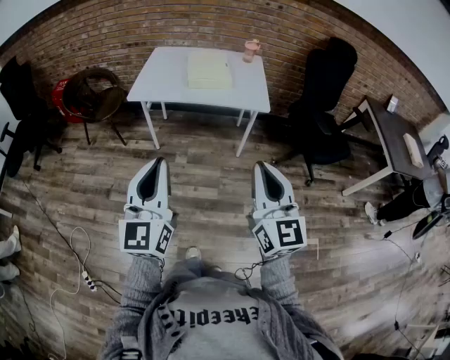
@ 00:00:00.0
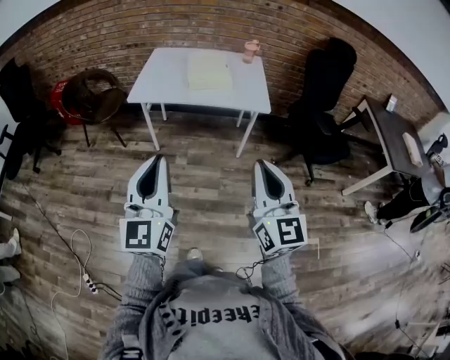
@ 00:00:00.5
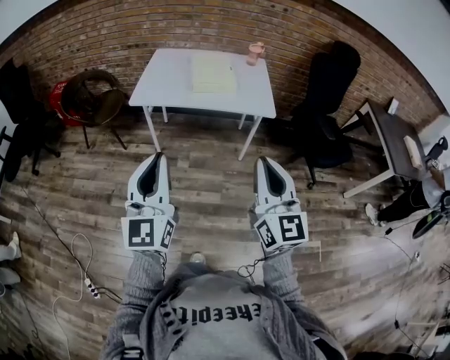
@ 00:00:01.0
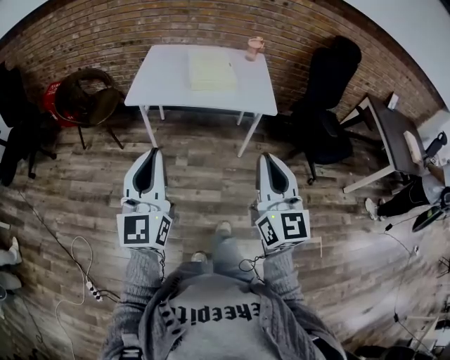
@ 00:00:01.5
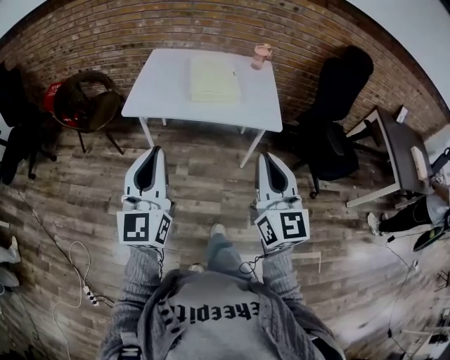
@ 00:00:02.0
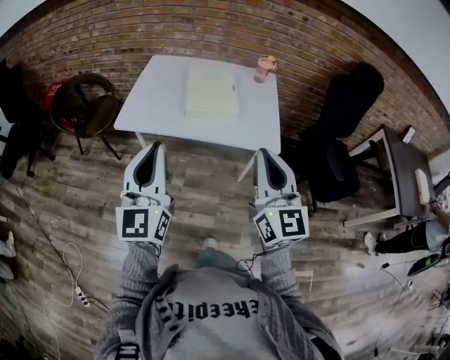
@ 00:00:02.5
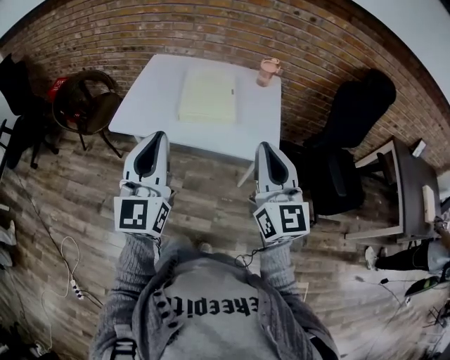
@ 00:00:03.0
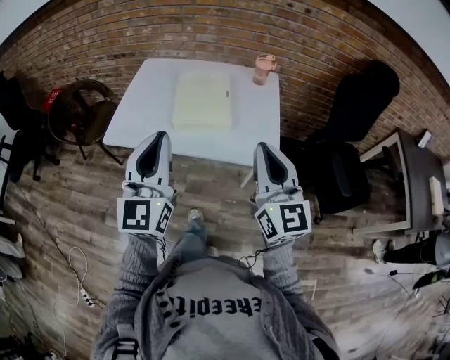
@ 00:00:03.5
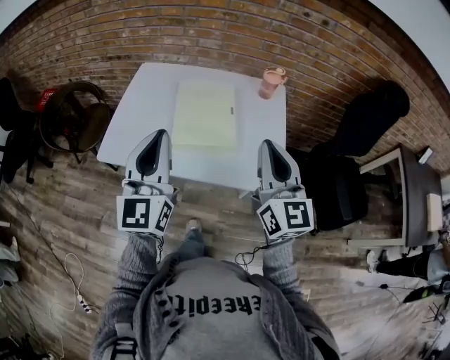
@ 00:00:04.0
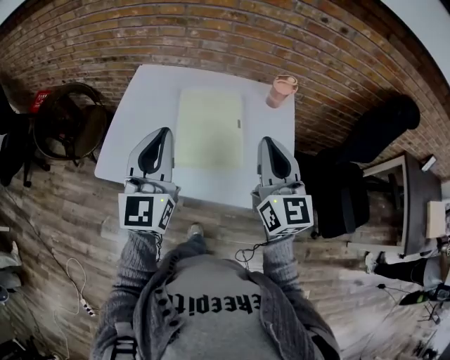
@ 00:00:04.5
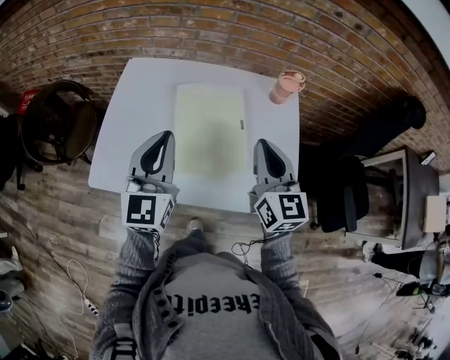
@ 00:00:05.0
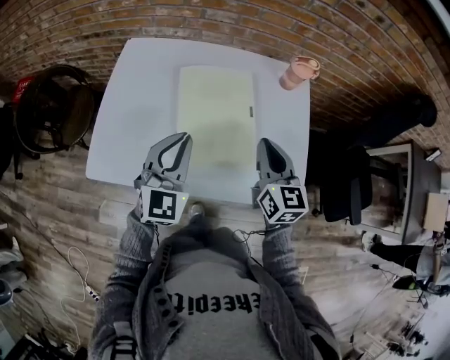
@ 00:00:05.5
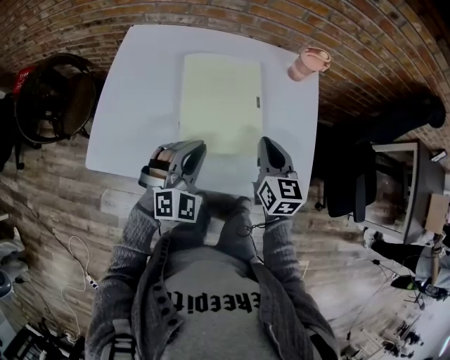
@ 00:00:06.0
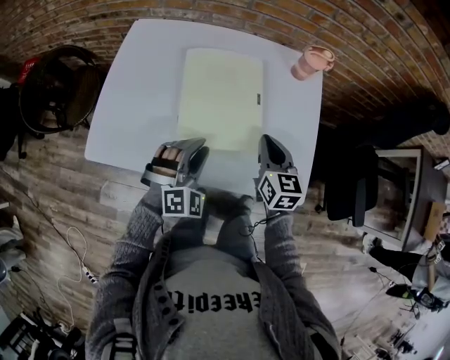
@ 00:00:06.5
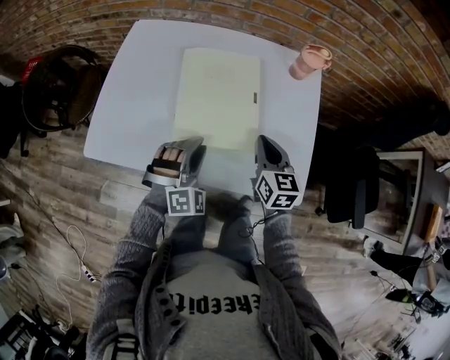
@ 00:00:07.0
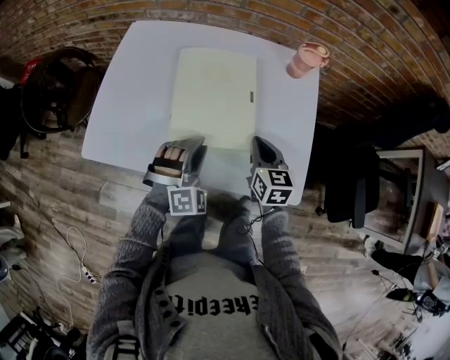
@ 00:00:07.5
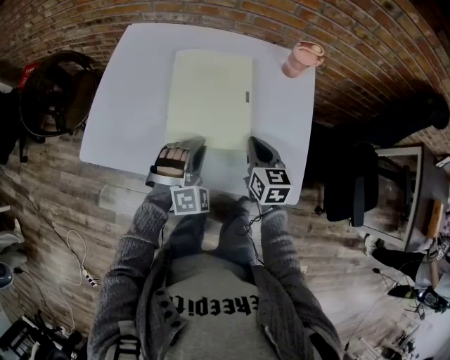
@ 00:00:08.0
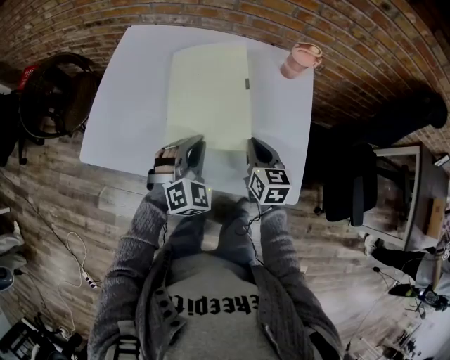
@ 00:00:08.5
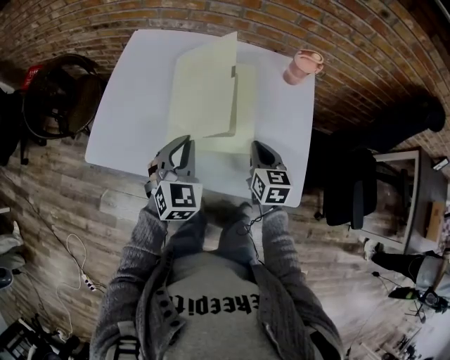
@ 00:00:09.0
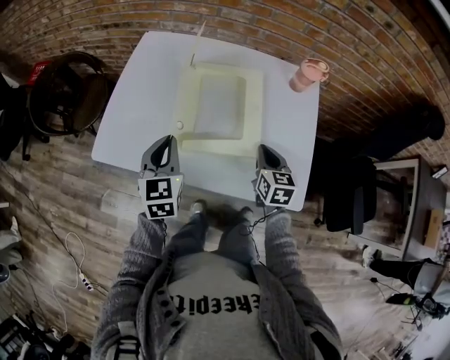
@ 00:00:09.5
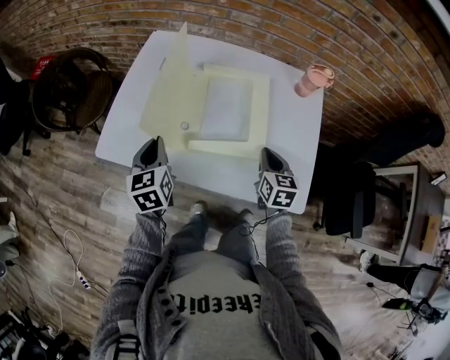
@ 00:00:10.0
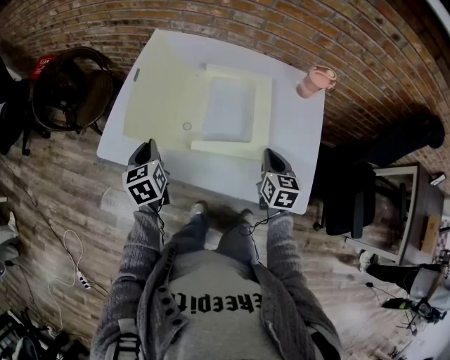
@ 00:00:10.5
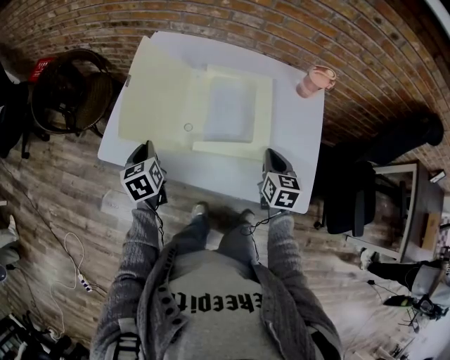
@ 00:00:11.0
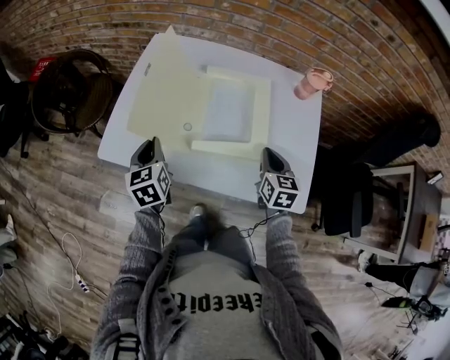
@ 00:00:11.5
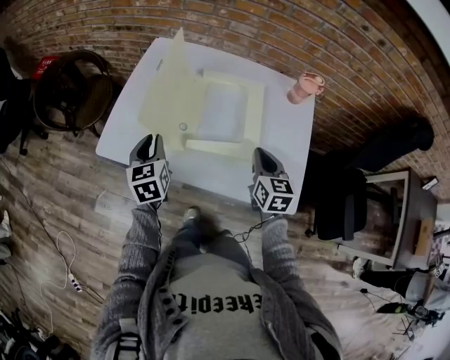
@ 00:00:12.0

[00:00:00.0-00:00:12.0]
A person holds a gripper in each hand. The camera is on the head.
00:00:00.0 to 00:00:02.0: Both grippers move forward, roughly 20 cm.
00:00:02.0 to 00:00:04.0: The two grippers go roughly 35 cm forward.
00:00:04.0 to 00:00:06.0: The two grippers go approximately 30 cm downward and forward. The left gripper tips its fingers downward by approximately 40 degrees. The right gripper turns by approximately 30 degrees.
00:00:06.0 to 00:00:08.0: Both grippers move downward, roughly 5 cm. The left gripper rotates approximately 20 degrees.
00:00:08.0 to 00:00:10.0: The left gripper heads to the left, covering some 20 cm, and rolls counterclockwise, seen from behind, by approximately 80 degrees.
00:00:10.0 to 00:00:12.0: The right gripper is displaced upward by approximately 5 cm.

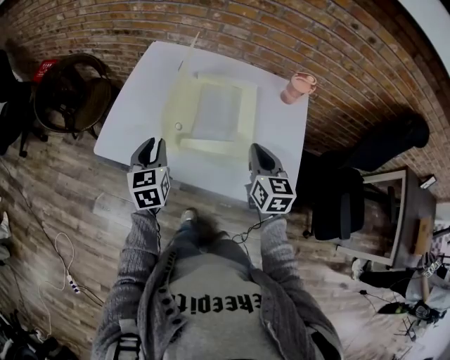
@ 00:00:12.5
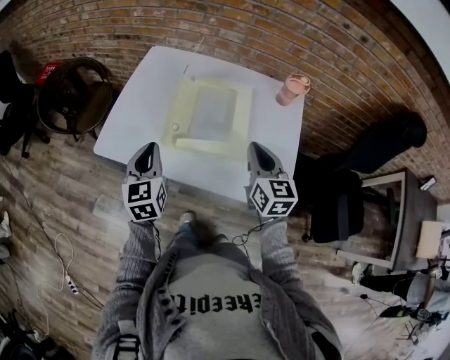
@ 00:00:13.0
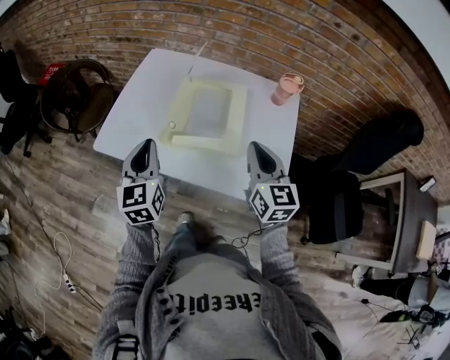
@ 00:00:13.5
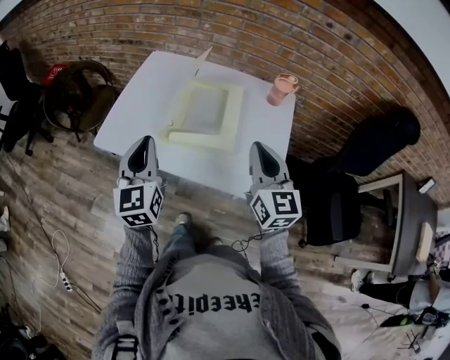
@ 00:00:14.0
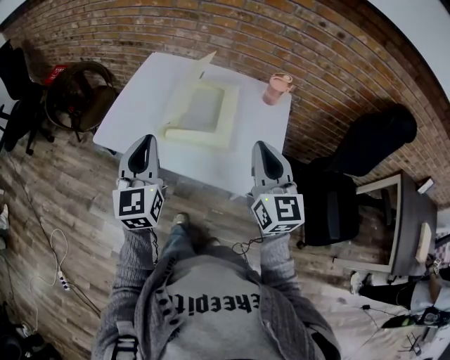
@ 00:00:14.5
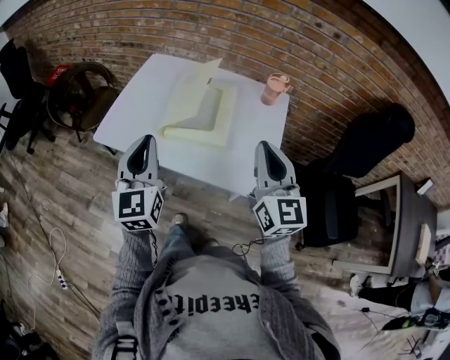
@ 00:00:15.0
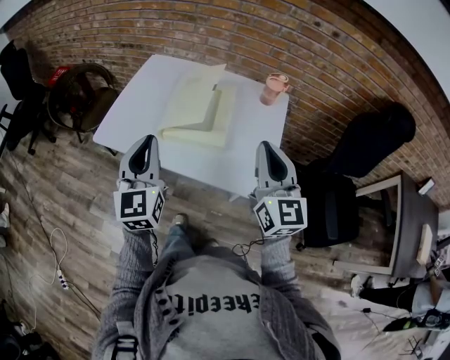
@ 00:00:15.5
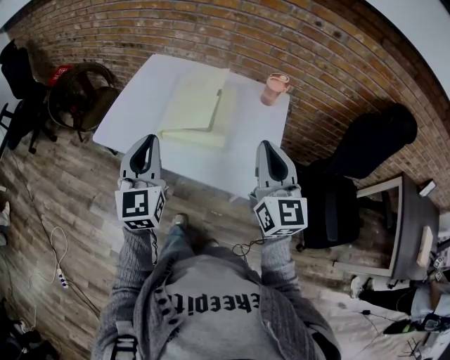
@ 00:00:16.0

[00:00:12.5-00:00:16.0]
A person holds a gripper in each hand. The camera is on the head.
00:00:12.5 to 00:00:14.5: Both grippers move upward and backward, roughly 20 cm. The right gripper turns by roughly 20 degrees. The left gripper swivels about 30 degrees.
00:00:14.5 to 00:00:16.0: The grippers move only a little.

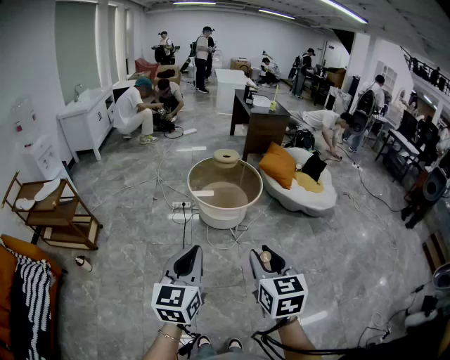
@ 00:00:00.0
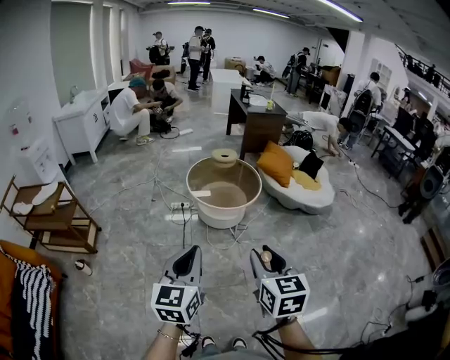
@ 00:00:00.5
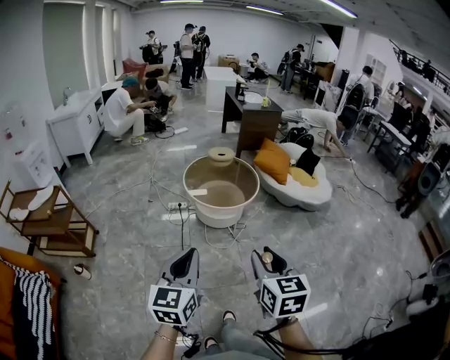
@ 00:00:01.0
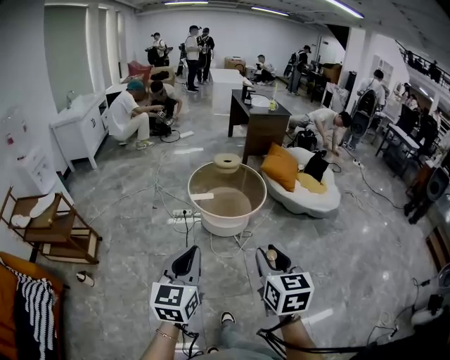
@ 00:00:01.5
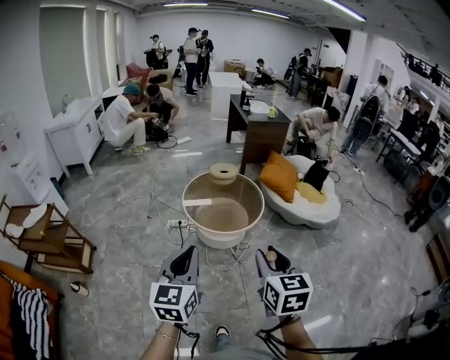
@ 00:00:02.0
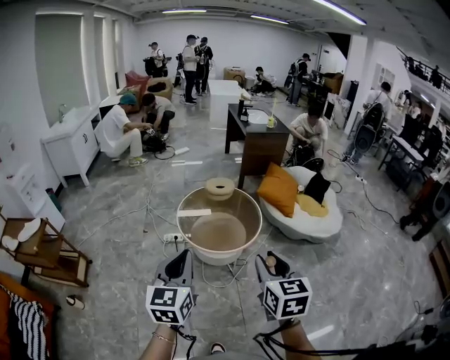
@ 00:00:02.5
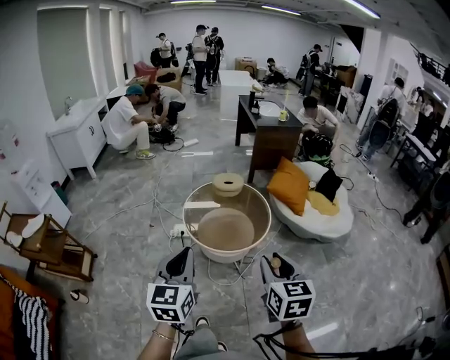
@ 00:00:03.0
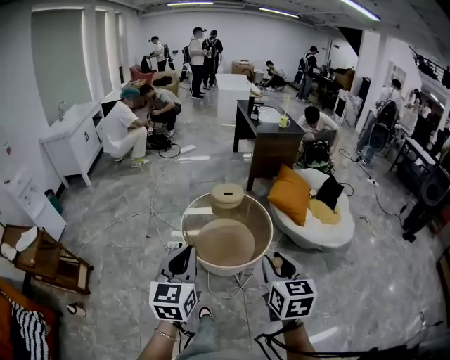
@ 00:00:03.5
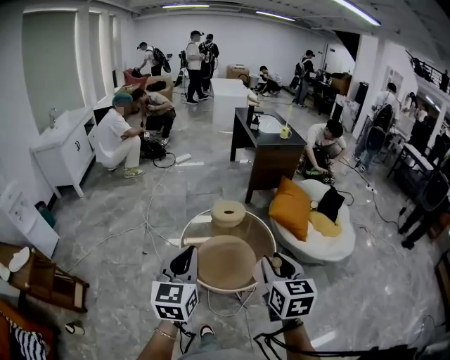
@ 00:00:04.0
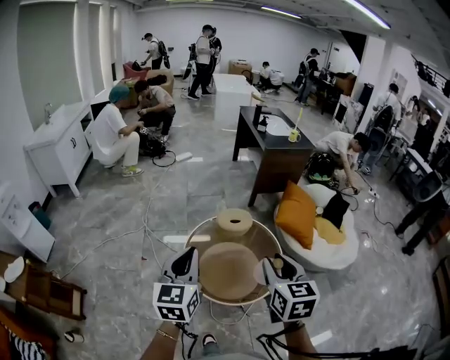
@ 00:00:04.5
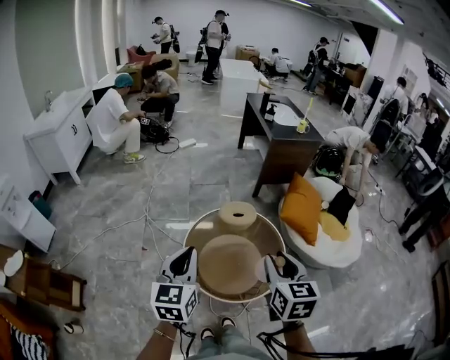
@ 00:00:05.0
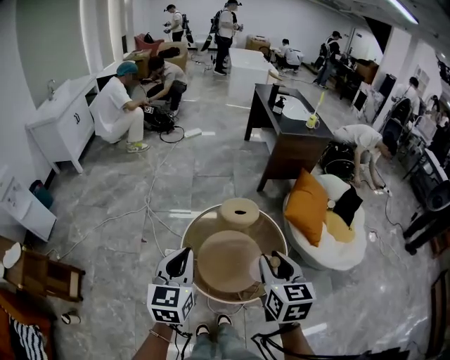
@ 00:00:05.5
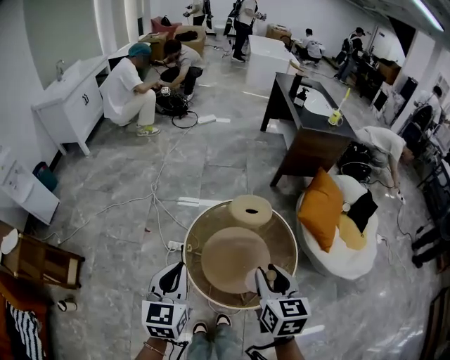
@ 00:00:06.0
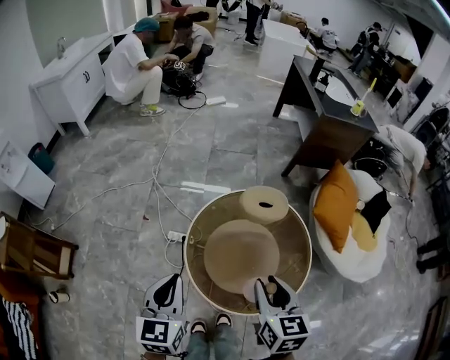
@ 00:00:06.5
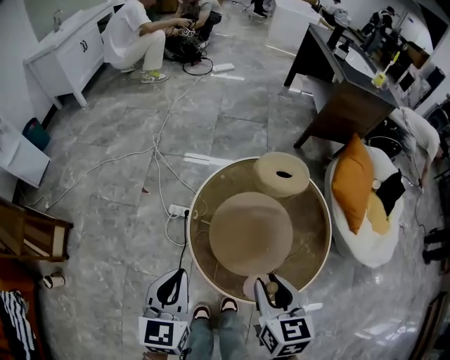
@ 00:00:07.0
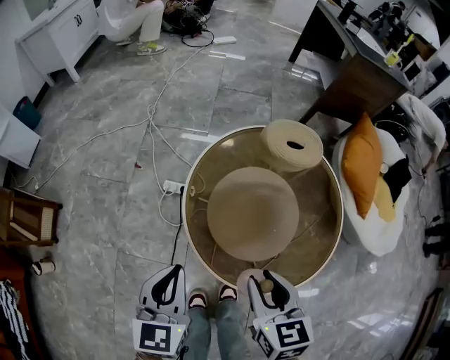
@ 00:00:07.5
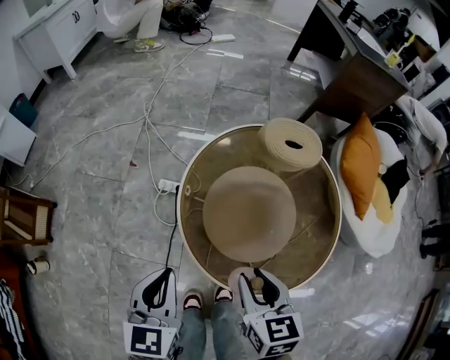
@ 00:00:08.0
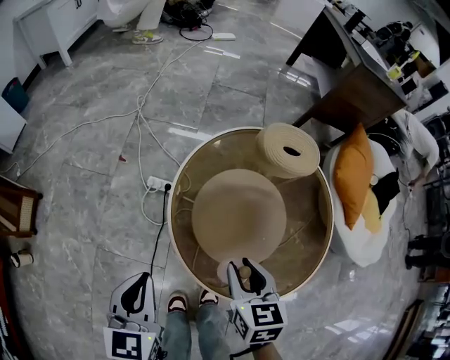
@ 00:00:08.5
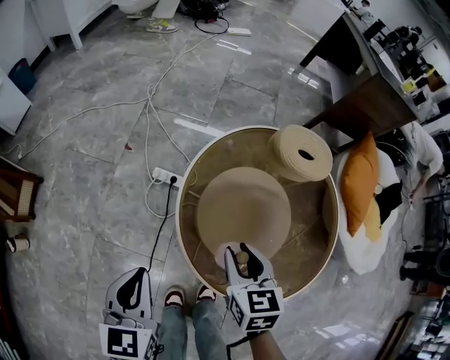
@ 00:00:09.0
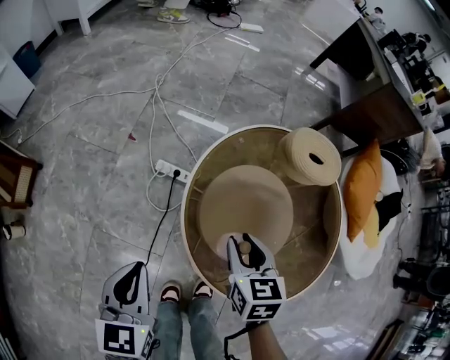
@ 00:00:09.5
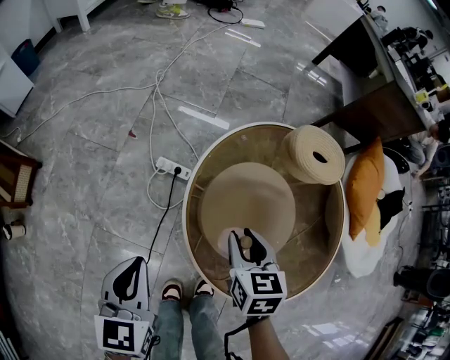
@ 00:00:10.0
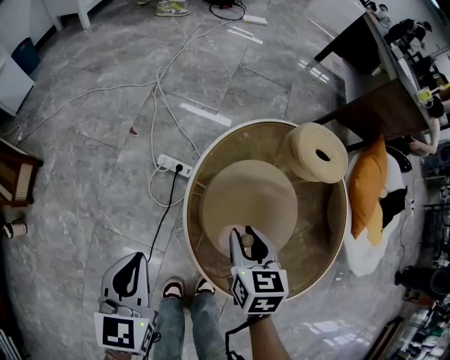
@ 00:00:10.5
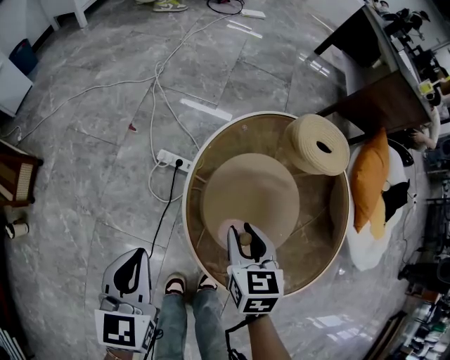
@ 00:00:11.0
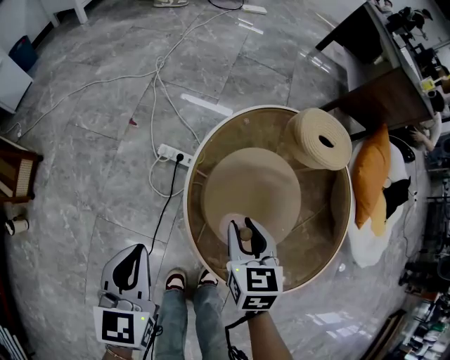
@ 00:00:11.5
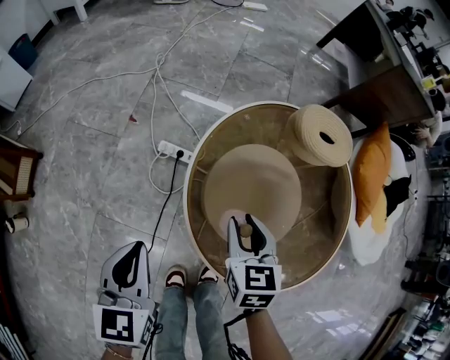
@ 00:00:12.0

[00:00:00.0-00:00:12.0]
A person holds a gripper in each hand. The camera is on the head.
00:00:00.0 to 00:00:02.0: The grippers both shift forward by about 20 cm.
00:00:02.0 to 00:00:04.0: Both grippers move forward, some 35 cm.
00:00:04.0 to 00:00:06.0: The left gripper shifts some 20 cm forward, downward and to the left, while the right gripper shifts approximately 25 cm forward and downward.
00:00:06.0 to 00:00:08.0: Both grippers travel together downward, roughly 30 cm.
00:00:08.0 to 00:00:10.0: The right gripper heads forward and downward, covering roughly 15 cm. Meanwhile the left gripper is displaced to the left by roughly 10 cm.
00:00:10.0 to 00:00:12.0: There are only small adjustments of the grippers.
